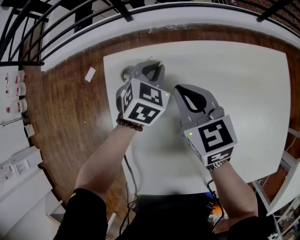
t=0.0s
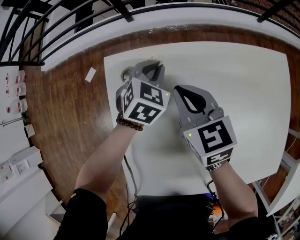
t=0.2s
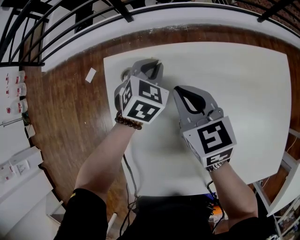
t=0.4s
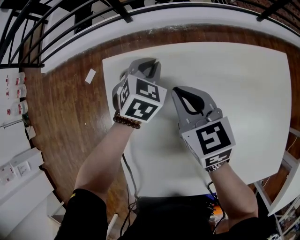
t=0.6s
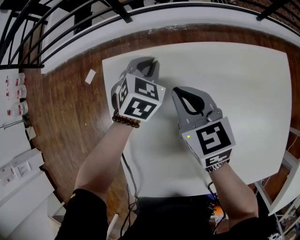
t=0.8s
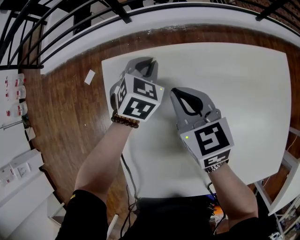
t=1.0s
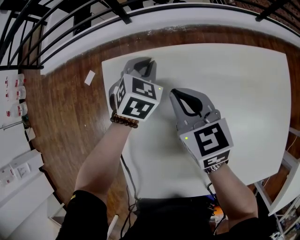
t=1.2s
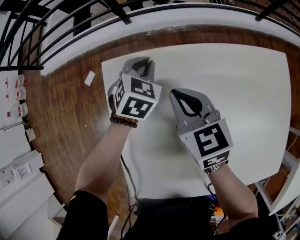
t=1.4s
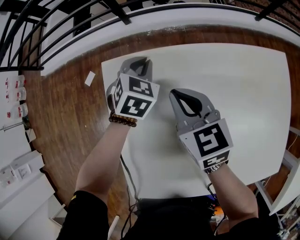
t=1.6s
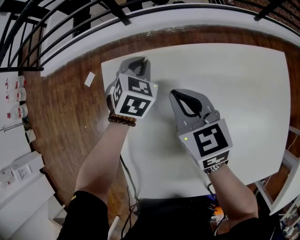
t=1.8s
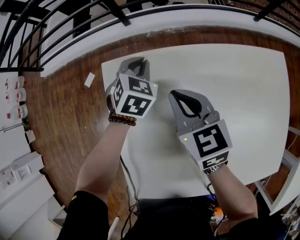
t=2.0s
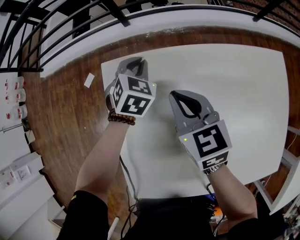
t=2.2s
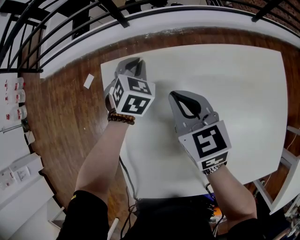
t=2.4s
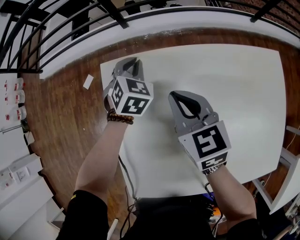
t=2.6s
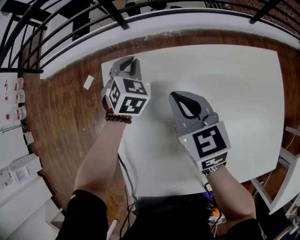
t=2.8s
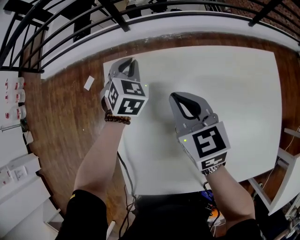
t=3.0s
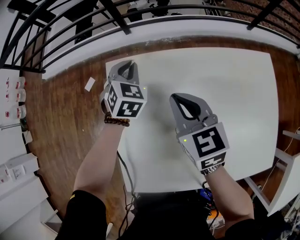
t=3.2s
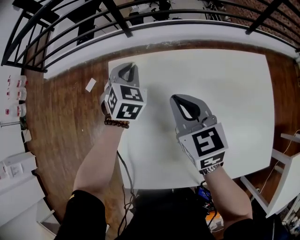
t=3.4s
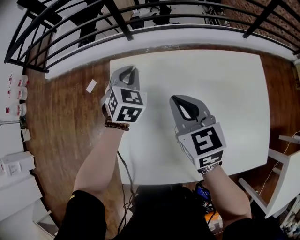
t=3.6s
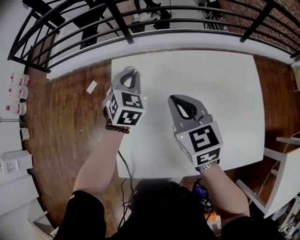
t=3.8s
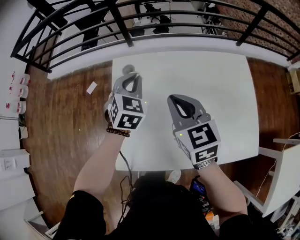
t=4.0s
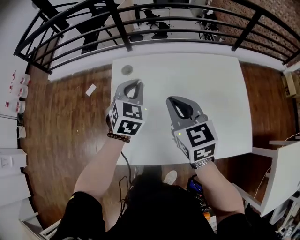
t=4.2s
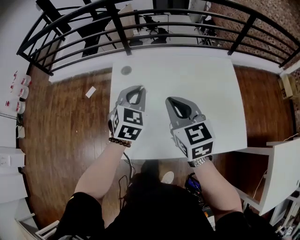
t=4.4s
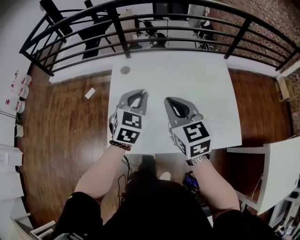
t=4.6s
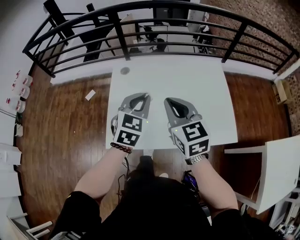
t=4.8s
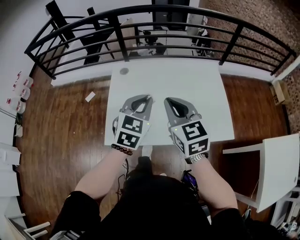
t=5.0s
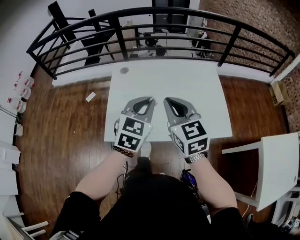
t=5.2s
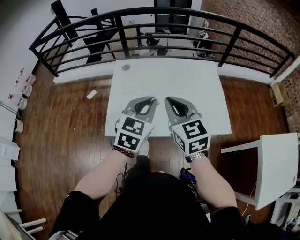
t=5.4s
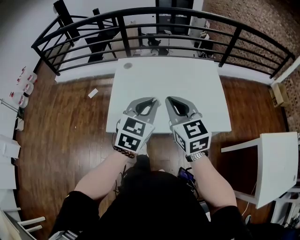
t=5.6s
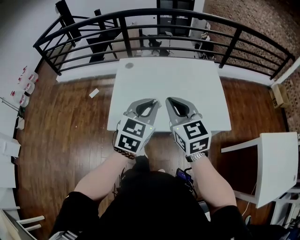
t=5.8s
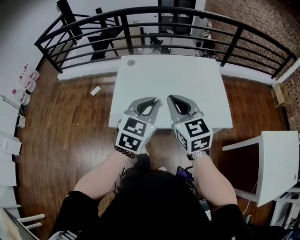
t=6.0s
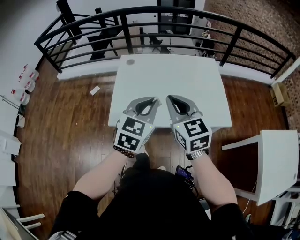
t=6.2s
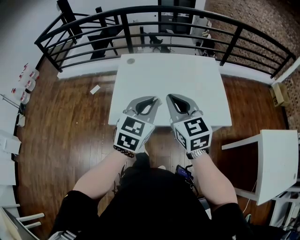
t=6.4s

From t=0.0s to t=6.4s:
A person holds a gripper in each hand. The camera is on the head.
From t=0.0s to t=1.6s: The grippers move only a little.
From t=1.6s to t=3.2s: The left gripper is displaced upward by some 5 cm. The right gripper shifts some 10 cm upward and backward.
From t=3.2s to t=4.8s: The grippers both shift backward and upward by approximately 40 cm. The left gripper turns by some 20 degrees.
From t=4.8s to t=6.4s: The two grippers go about 20 cm backward.

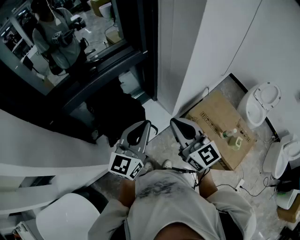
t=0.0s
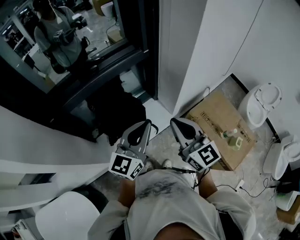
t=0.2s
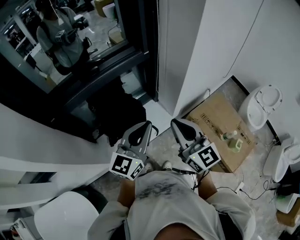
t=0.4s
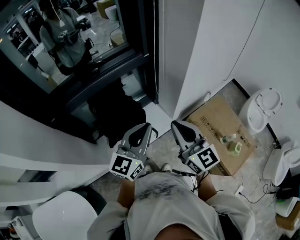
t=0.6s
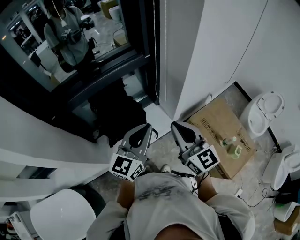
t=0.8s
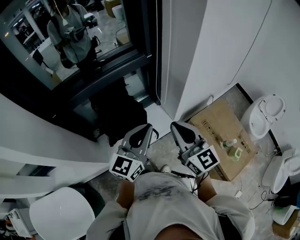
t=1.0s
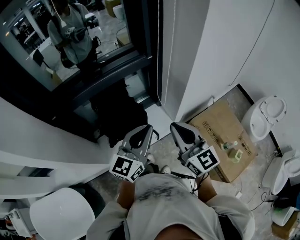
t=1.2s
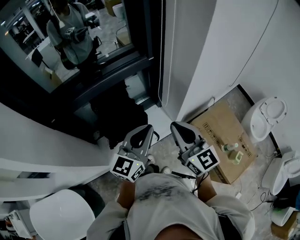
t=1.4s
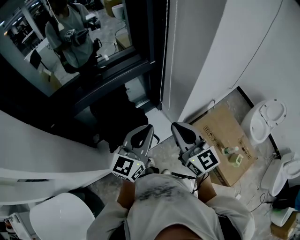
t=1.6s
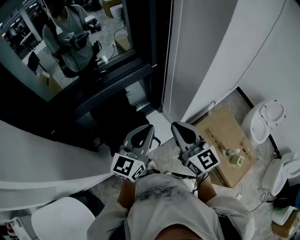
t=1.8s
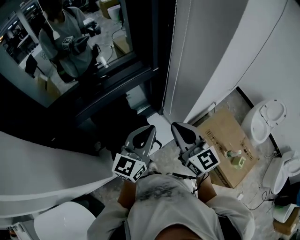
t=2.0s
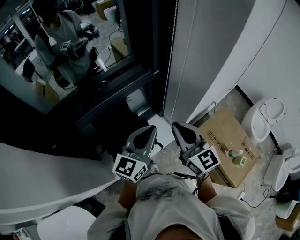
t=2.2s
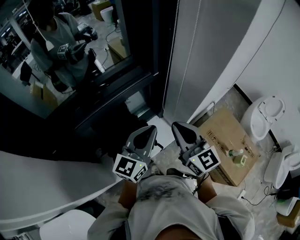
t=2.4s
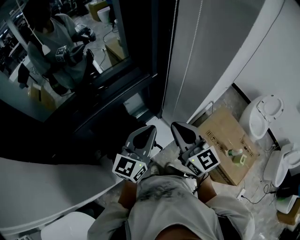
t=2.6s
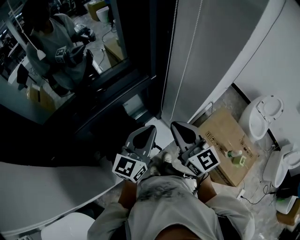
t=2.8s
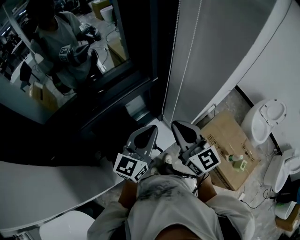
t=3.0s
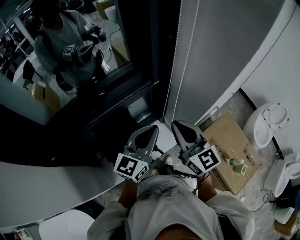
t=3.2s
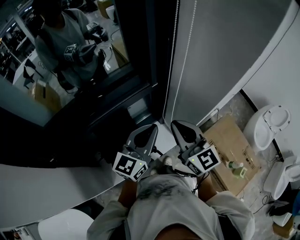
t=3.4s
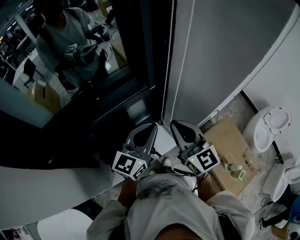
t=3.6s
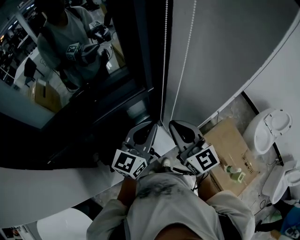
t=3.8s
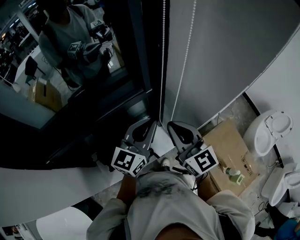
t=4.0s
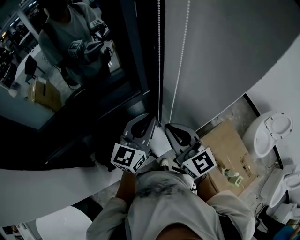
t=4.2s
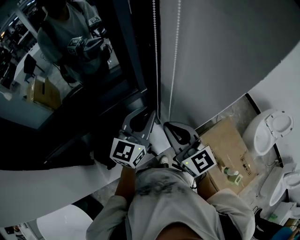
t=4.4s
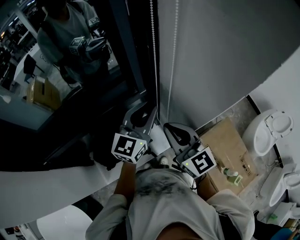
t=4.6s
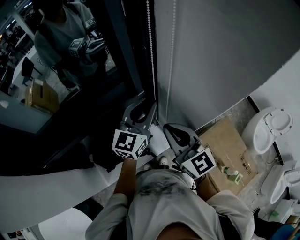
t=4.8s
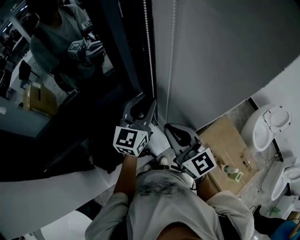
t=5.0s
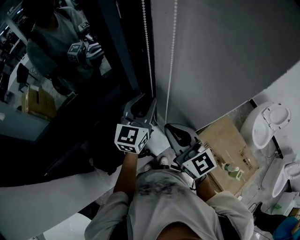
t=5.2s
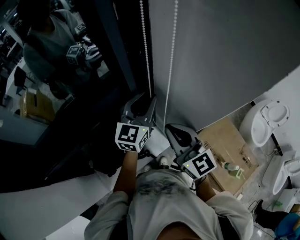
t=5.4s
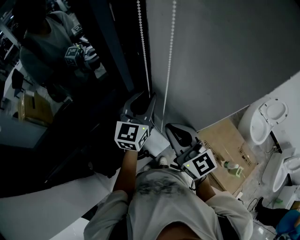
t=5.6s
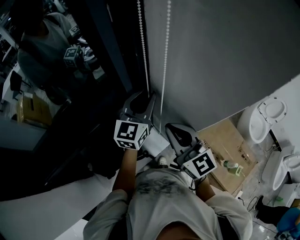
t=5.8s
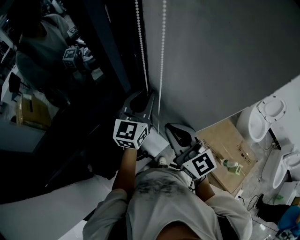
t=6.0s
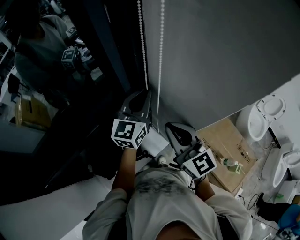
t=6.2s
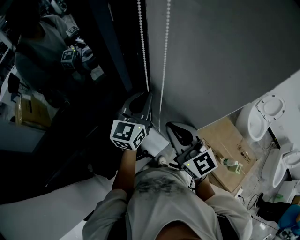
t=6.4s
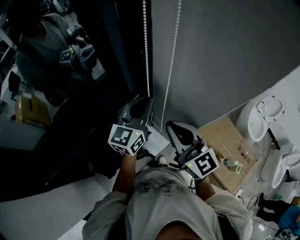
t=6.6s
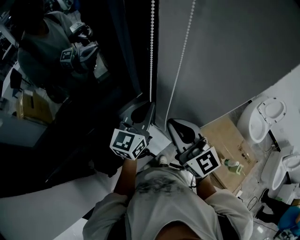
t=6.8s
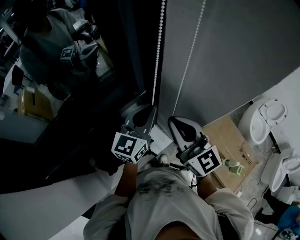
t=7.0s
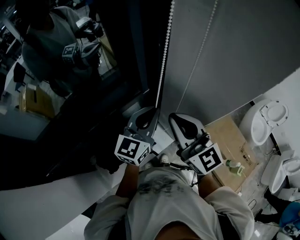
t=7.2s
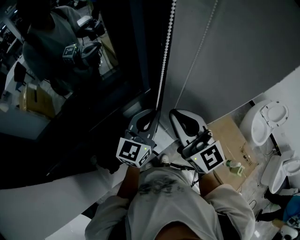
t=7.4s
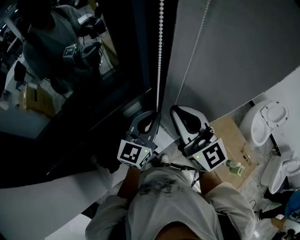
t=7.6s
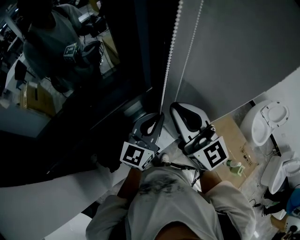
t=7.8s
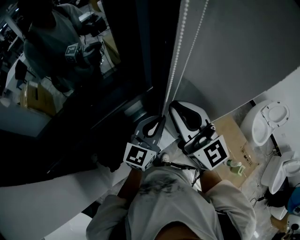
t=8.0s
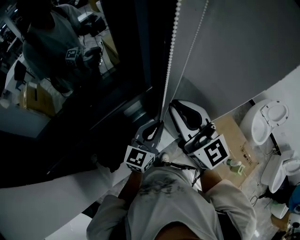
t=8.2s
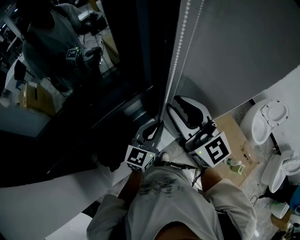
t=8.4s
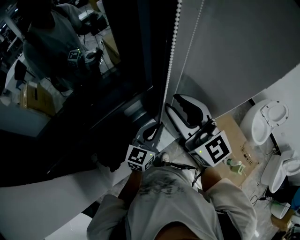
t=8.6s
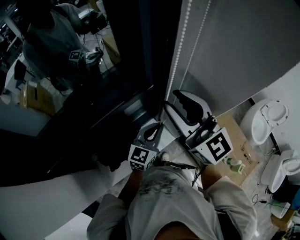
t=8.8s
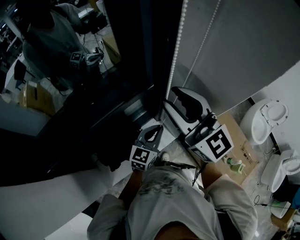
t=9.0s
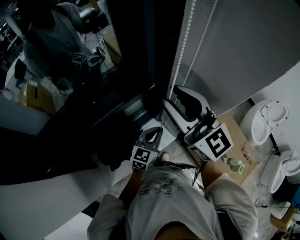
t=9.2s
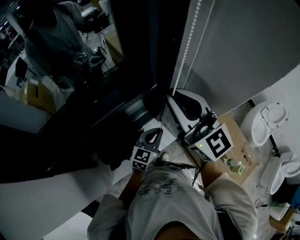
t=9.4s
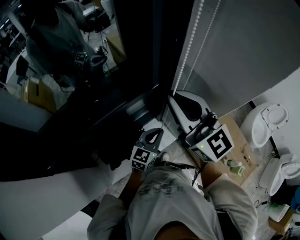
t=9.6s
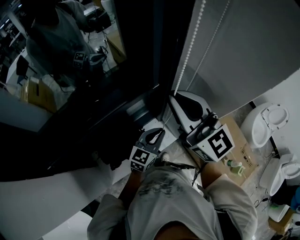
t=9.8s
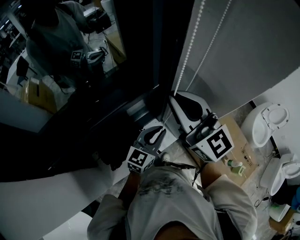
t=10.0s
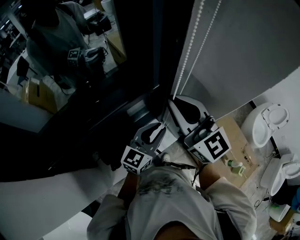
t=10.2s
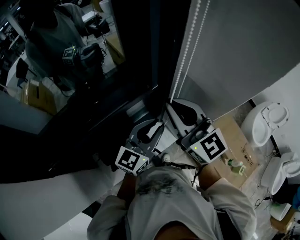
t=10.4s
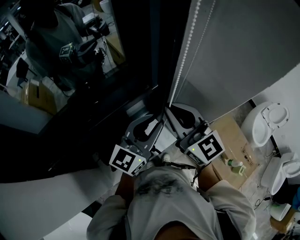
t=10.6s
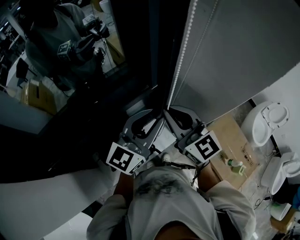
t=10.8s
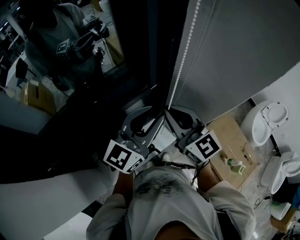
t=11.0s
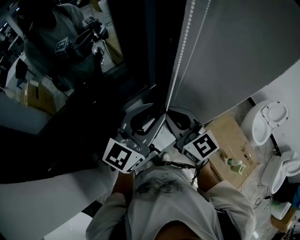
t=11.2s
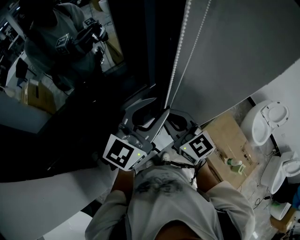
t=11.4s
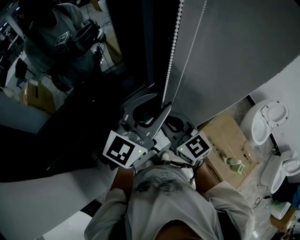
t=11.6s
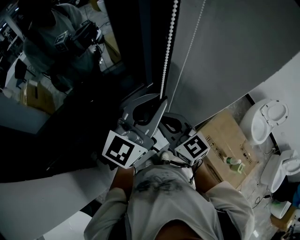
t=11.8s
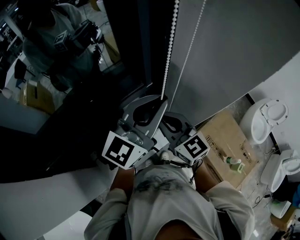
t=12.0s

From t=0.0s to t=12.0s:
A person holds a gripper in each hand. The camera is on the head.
From t=0.0s to t=1.6s: The two grippers go roughly 5 cm forward.
From t=1.6s to t=3.0s: Both grippers travel together forward, roughly 15 cm.
From t=3.0s to t=4.4s: The left gripper heads forward and to the right, covering approximately 15 cm; the right gripper heads forward, covering approximately 10 cm.
From t=4.4s to t=6.0s: The left gripper moves forward, about 10 cm.
From t=6.0s to t=7.6s: The left gripper moves backward, roughly 10 cm; the right gripper heads upward, covering about 10 cm.
From t=7.6s to t=9.0s: The left gripper heads downward, covering about 15 cm; the right gripper opens up.
From t=9.0s to t=10.4s: The left gripper goes approximately 10 cm upward, and opens, while the right gripper closes up.
From t=10.4s to t=12.0s: The right gripper travels downward by roughly 10 cm; the left gripper moves upward, roughly 15 cm.

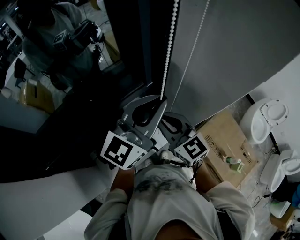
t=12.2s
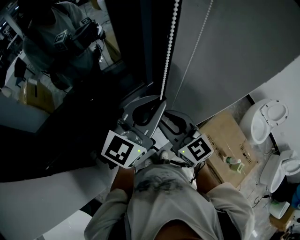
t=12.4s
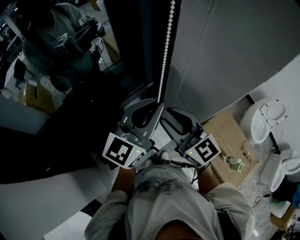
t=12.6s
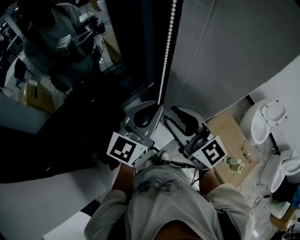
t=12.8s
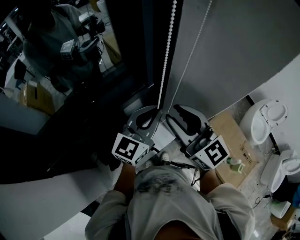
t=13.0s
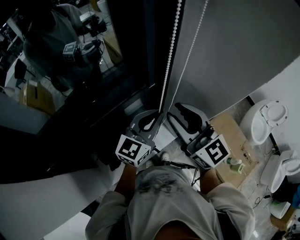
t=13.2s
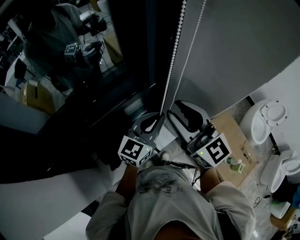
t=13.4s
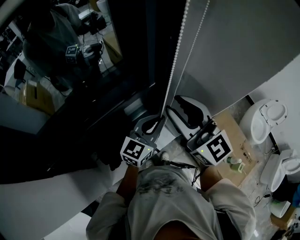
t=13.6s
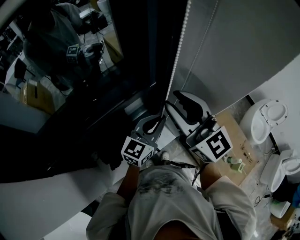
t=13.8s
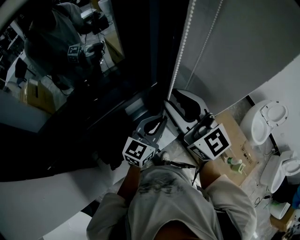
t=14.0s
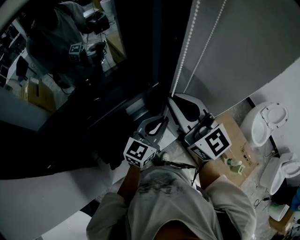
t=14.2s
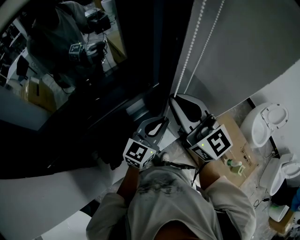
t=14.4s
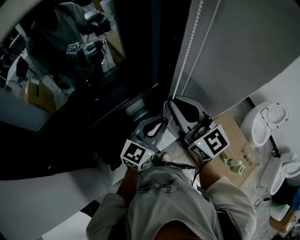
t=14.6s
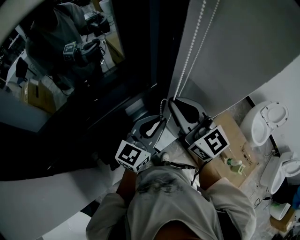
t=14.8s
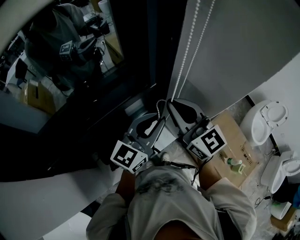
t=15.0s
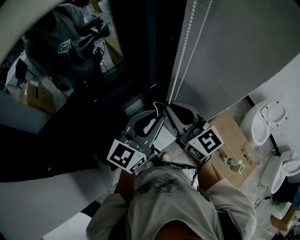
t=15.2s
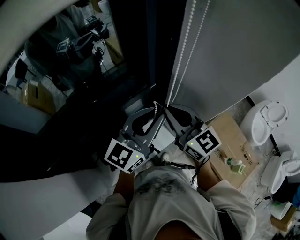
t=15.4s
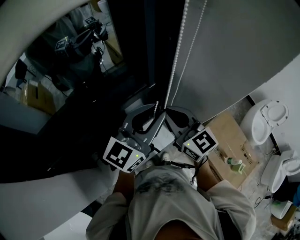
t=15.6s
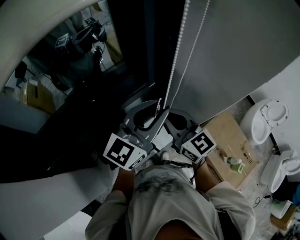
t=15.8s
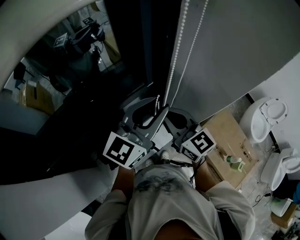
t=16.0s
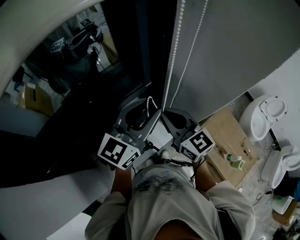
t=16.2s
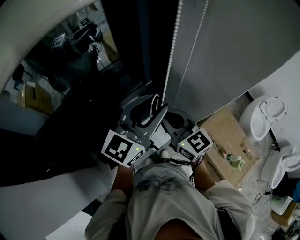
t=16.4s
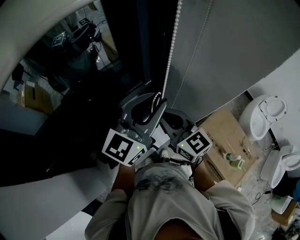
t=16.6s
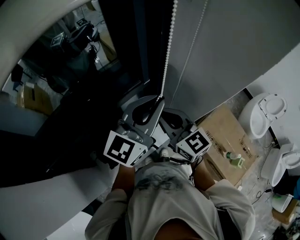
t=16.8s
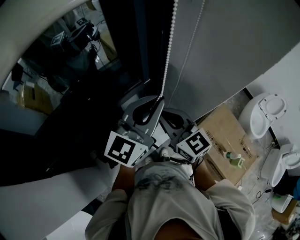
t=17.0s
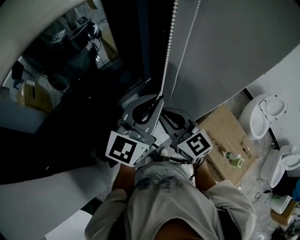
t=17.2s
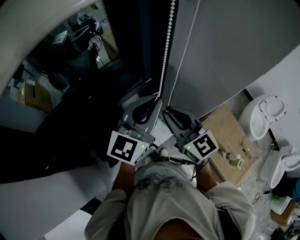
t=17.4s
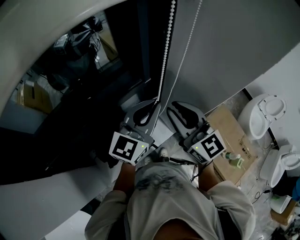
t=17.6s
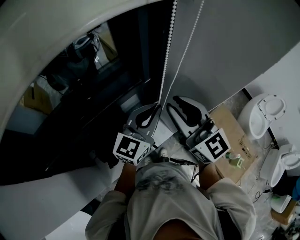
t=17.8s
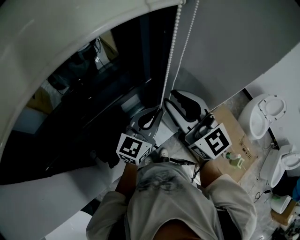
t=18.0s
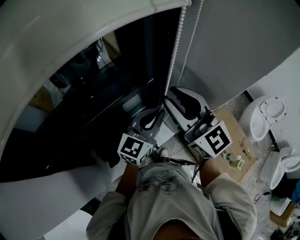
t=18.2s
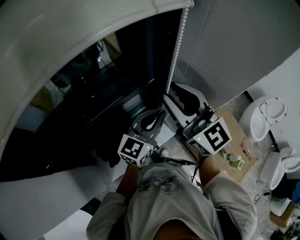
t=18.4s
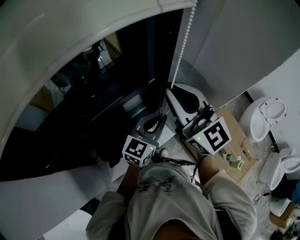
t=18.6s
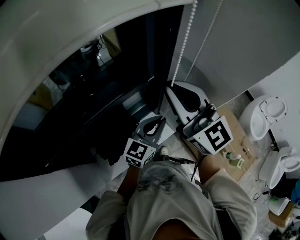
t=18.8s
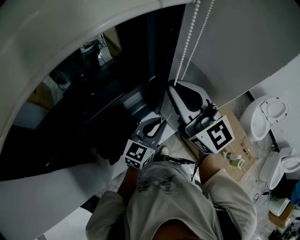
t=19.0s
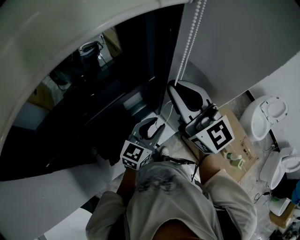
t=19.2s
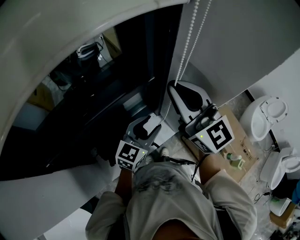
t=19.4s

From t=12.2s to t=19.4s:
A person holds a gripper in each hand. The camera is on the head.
From t=12.2s to t=13.6s: The right gripper goes about 10 cm upward, and opens its fingers, while the left gripper shifts roughly 15 cm downward.
From t=13.6s to t=15.0s: The left gripper moves upward, roughly 5 cm. The right gripper closes up.
From t=15.0s to t=16.6s: The right gripper goes some 5 cm downward. The left gripper goes roughly 5 cm upward.
From t=16.6s to t=18.0s: The left gripper heads downward, covering about 10 cm. The right gripper travels upward by about 10 cm, and opens its fingers.
From t=18.0s to t=19.4s: The left gripper moves downward, some 5 cm, and opens up.
